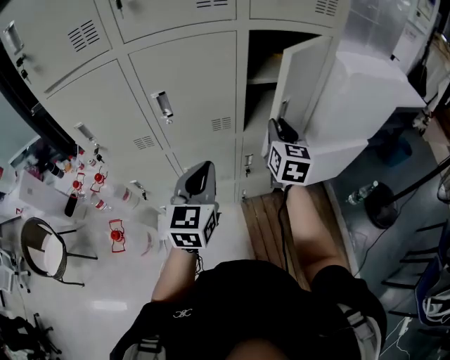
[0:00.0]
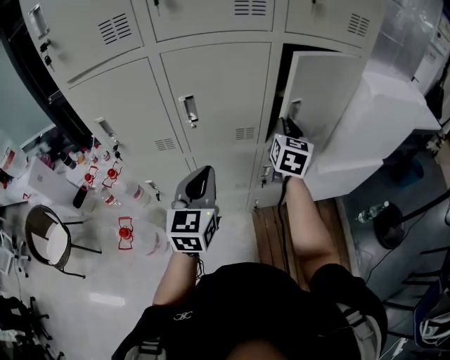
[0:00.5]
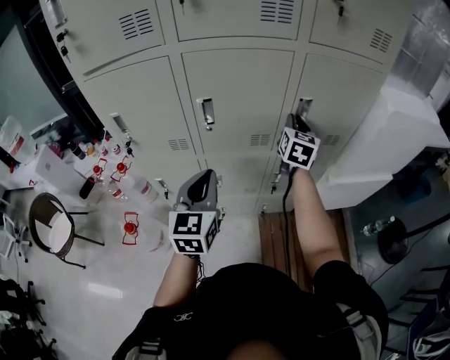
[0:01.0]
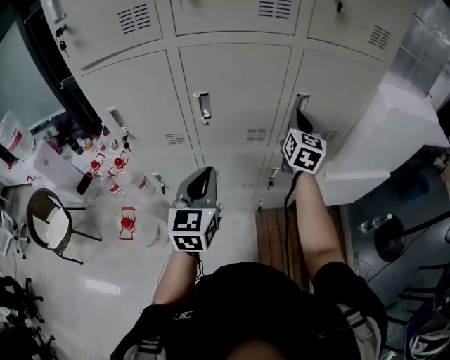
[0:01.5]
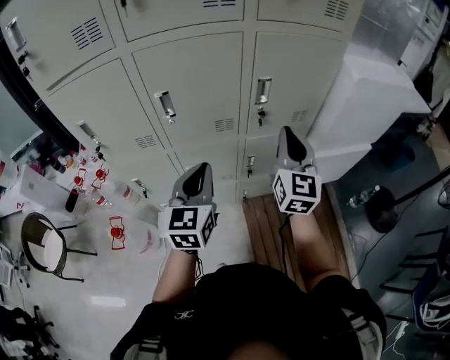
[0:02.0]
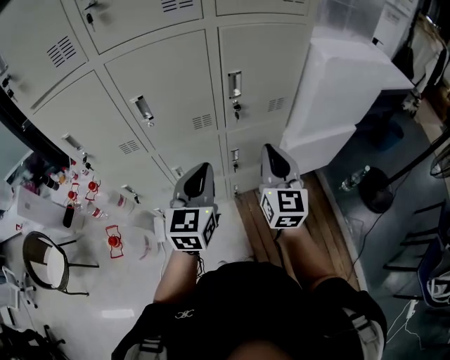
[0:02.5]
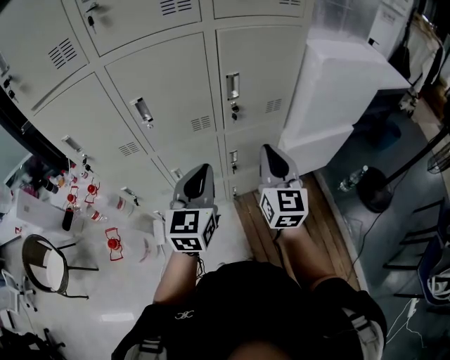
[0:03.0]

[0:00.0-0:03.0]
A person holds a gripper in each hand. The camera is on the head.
0:00.0 to 0:01.5: The right gripper heads forward and to the left, covering about 10 cm, and closes up. The left gripper goes approximately 10 cm to the left.
0:01.5 to 0:03.0: The right gripper heads backward, covering roughly 20 cm; the left gripper heads to the right, covering roughly 15 cm.

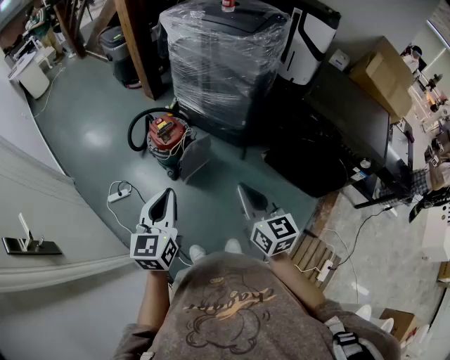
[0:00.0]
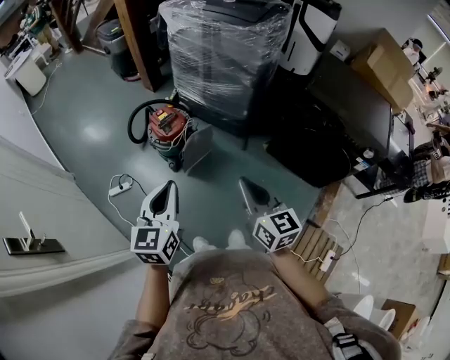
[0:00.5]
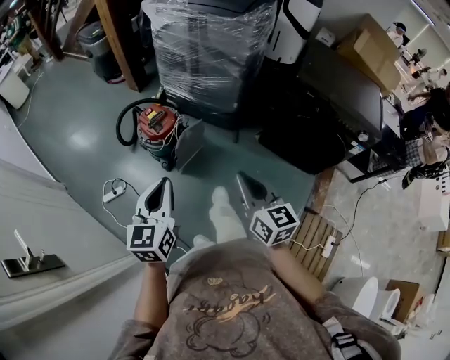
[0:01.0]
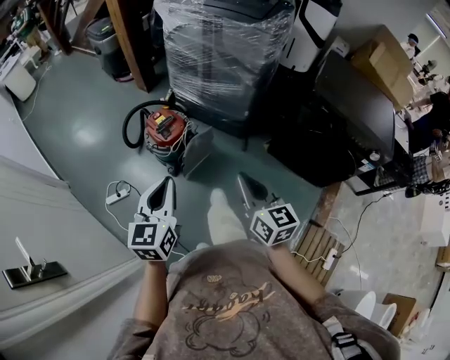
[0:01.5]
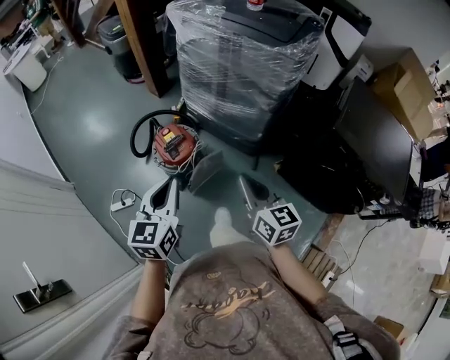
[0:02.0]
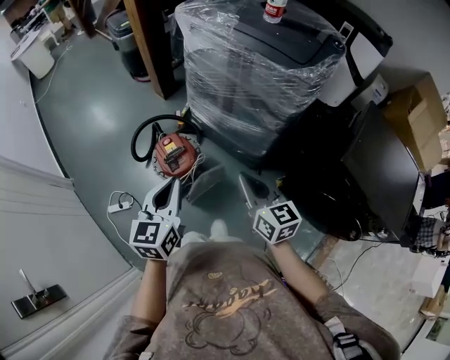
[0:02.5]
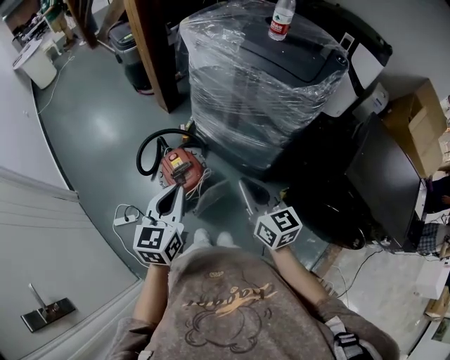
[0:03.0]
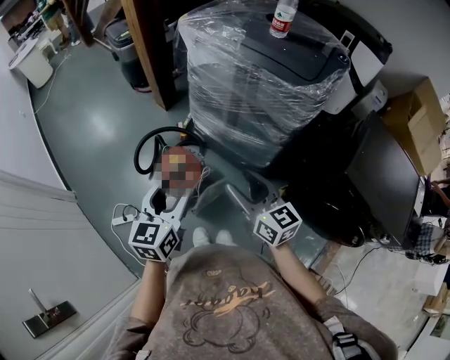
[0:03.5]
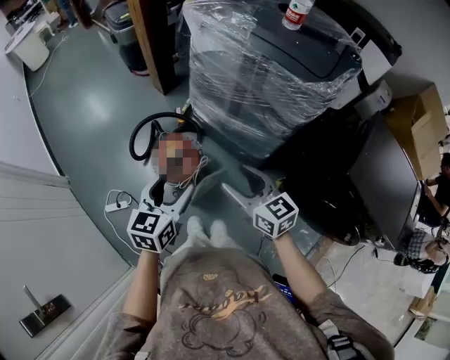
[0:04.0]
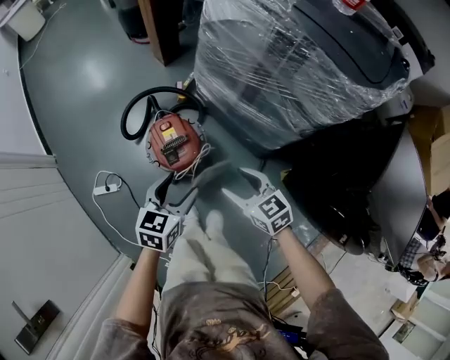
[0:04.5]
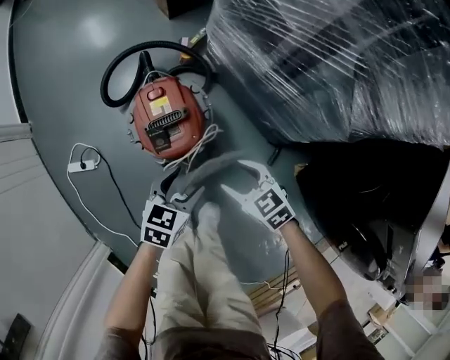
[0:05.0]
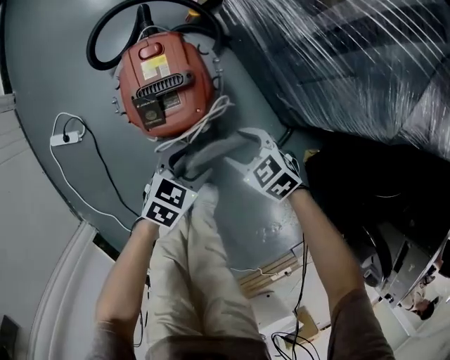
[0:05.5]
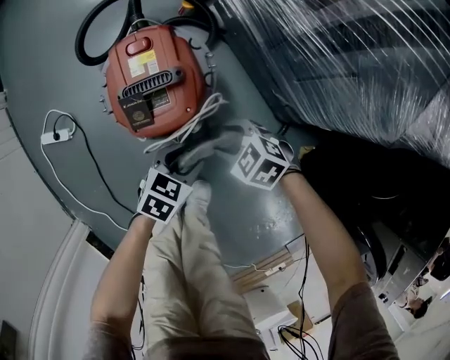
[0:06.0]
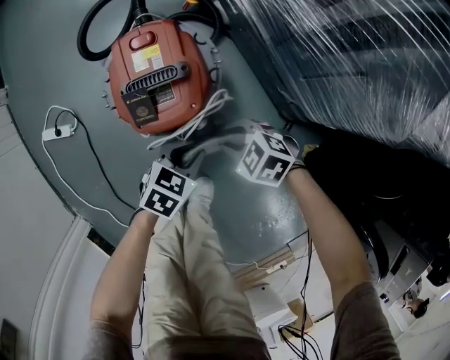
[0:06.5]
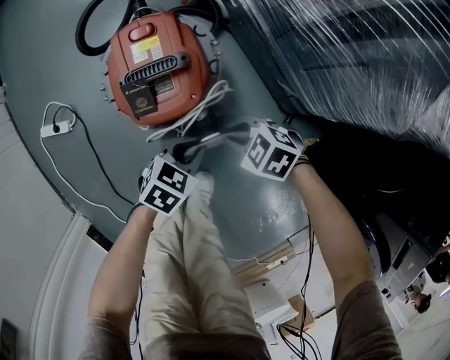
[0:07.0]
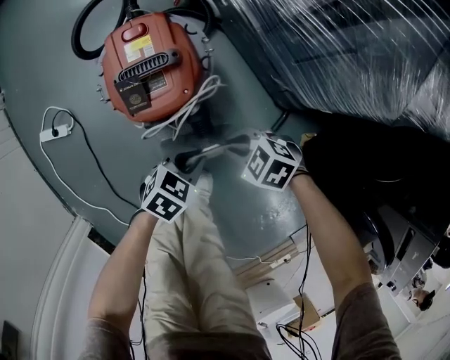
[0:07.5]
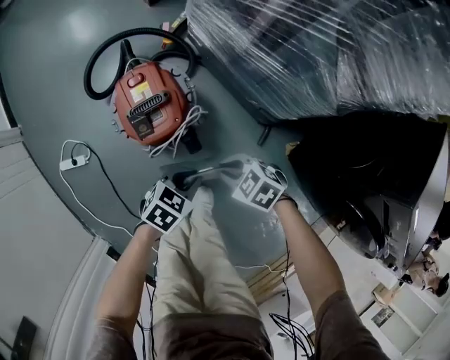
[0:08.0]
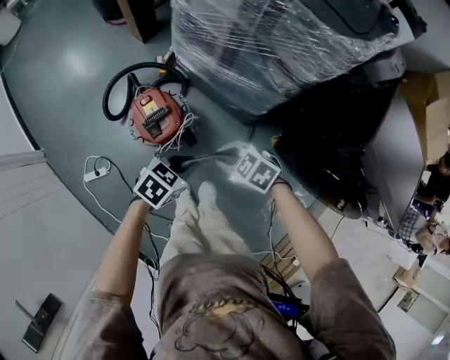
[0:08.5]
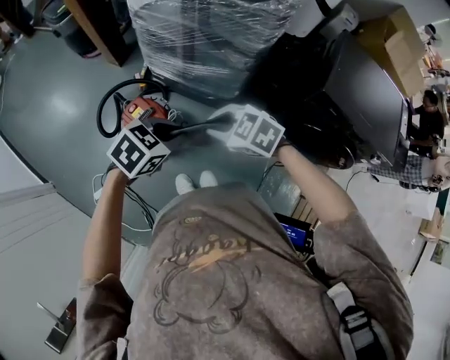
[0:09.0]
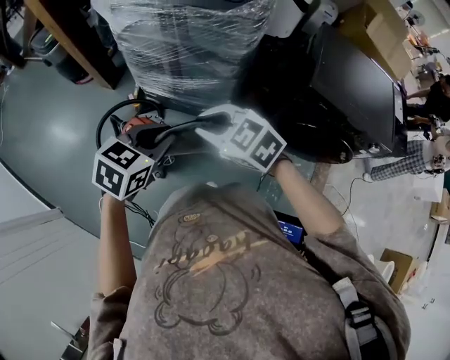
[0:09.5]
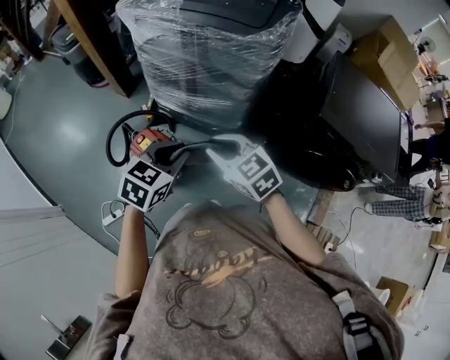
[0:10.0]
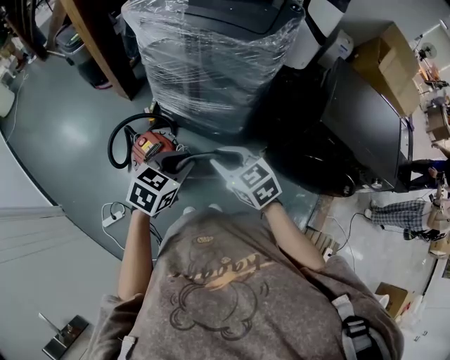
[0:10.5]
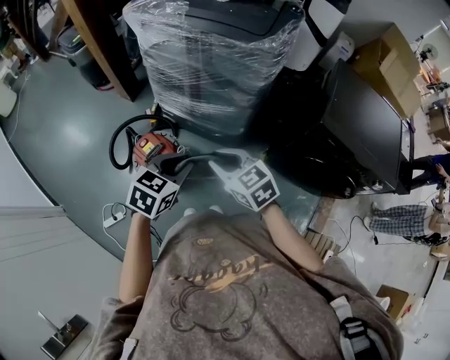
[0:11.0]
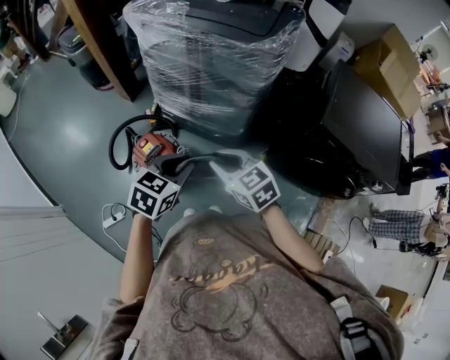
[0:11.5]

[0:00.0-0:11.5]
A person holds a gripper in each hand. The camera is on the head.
0:00.0 to 0:02.0: Both grippers move forward, about 25 cm.
0:02.0 to 0:04.0: Both grippers travel together forward, some 15 cm. The right gripper changes its angle by approximately 20 degrees, and opens up. The left gripper opens its fingers.
0:04.0 to 0:06.0: The two grippers go approximately 60 cm downward. The left gripper turns by approximately 30 degrees. Meanwhile the right gripper angles its fingers downward, by about 40 degrees.
0:06.0 to 0:07.5: The right gripper changes place by roughly 5 cm, and closes. The left gripper closes up.
0:07.5 to 0:09.5: Both grippers move upward, roughly 60 cm. The left gripper turns by approximately 30 degrees. The right gripper changes its angle by roughly 50 degrees.
0:09.5 to 0:11.5: The right gripper goes roughly 5 cm downward.

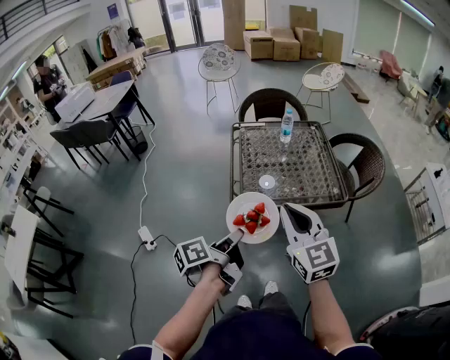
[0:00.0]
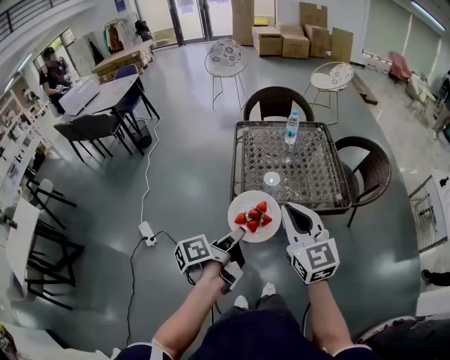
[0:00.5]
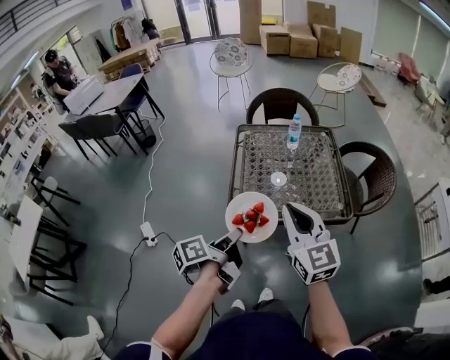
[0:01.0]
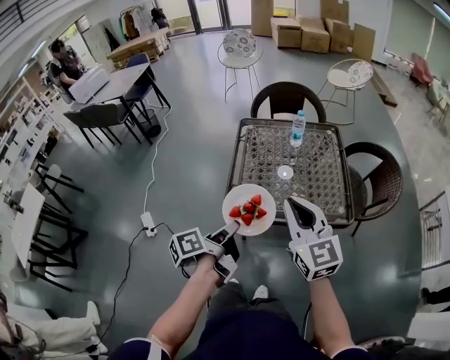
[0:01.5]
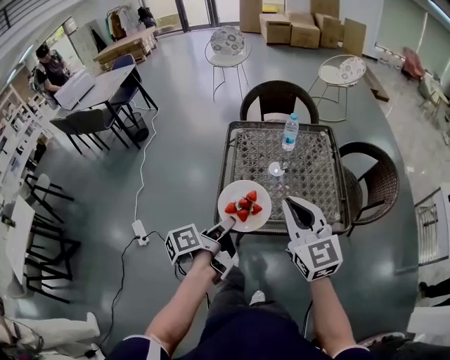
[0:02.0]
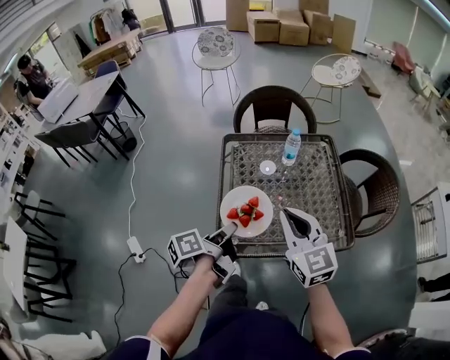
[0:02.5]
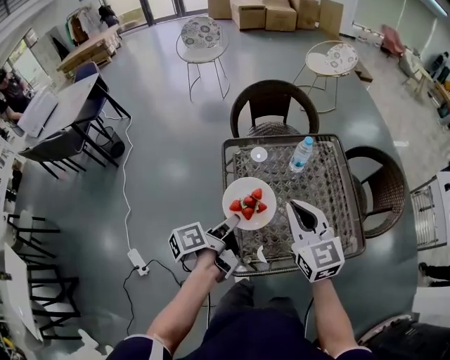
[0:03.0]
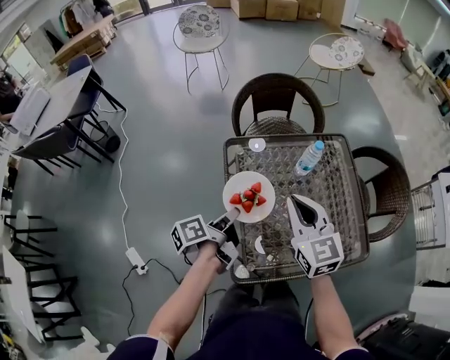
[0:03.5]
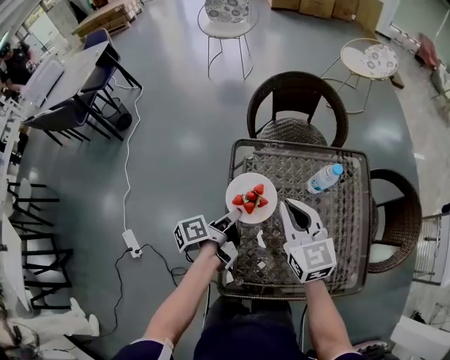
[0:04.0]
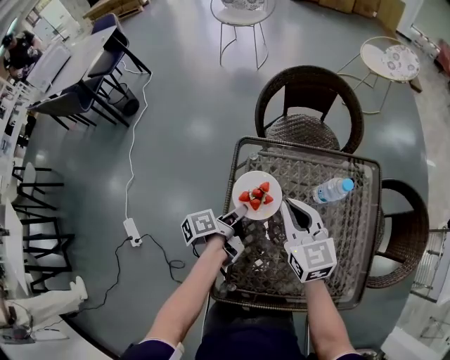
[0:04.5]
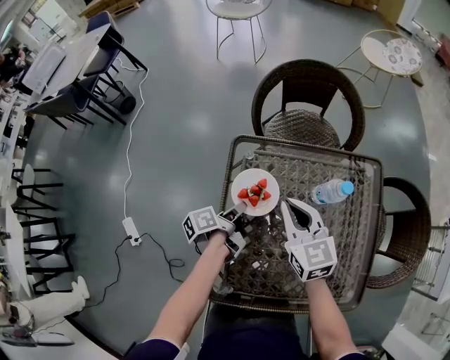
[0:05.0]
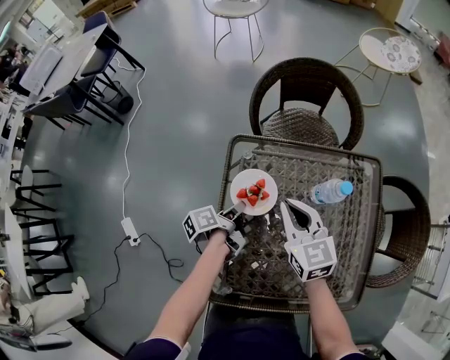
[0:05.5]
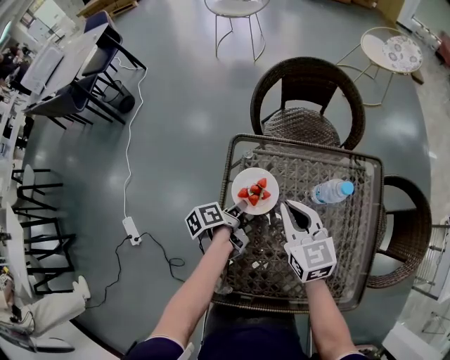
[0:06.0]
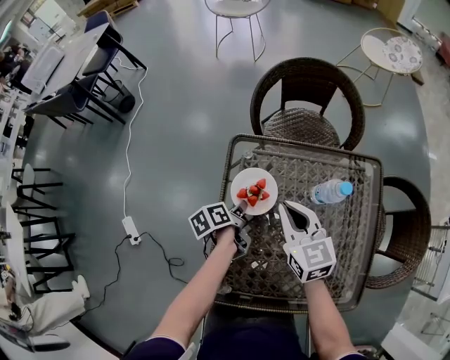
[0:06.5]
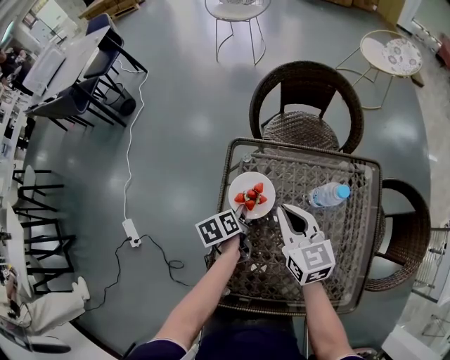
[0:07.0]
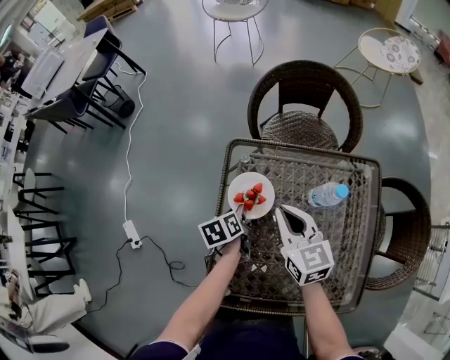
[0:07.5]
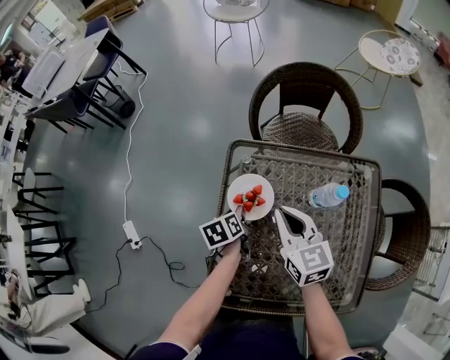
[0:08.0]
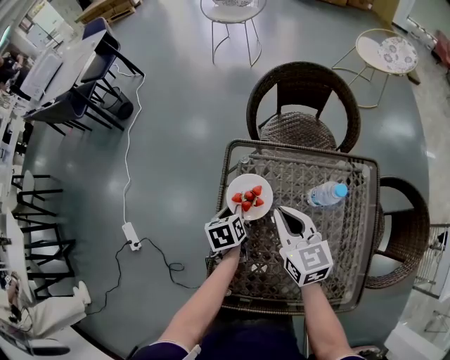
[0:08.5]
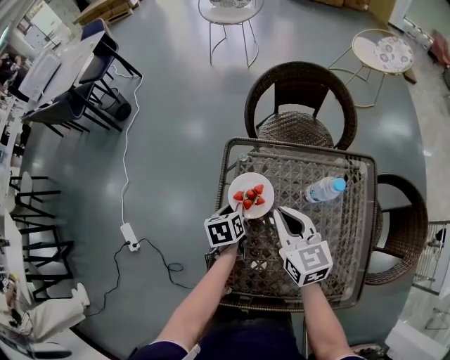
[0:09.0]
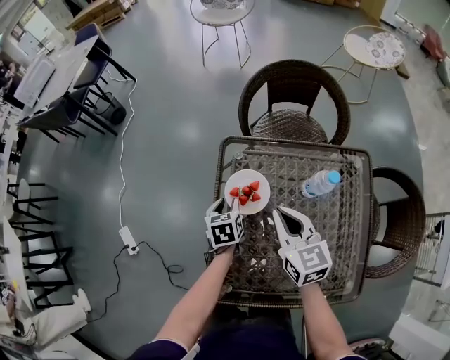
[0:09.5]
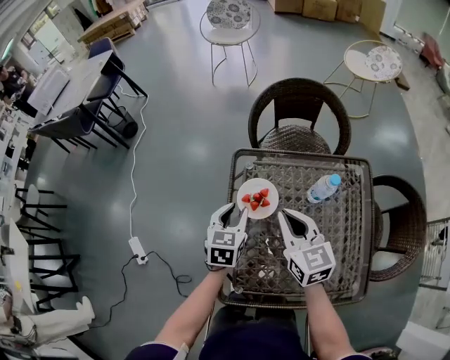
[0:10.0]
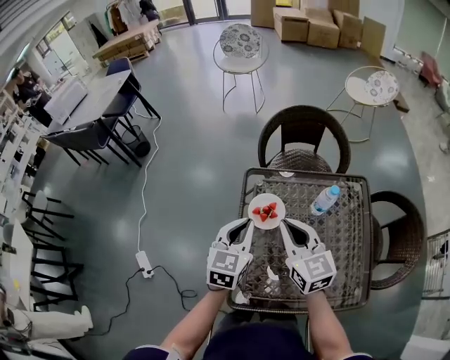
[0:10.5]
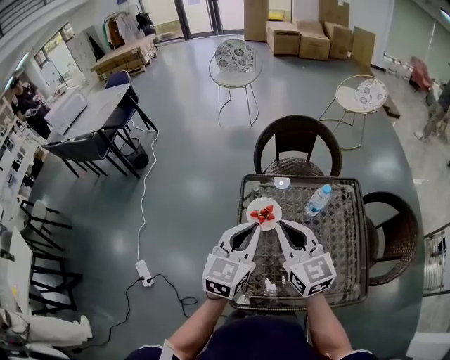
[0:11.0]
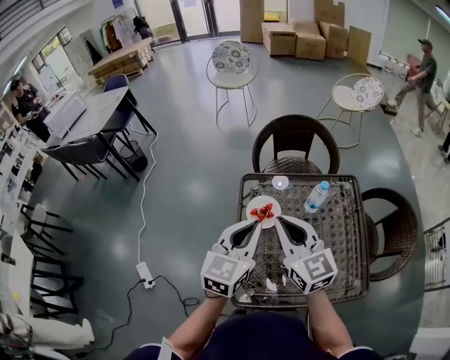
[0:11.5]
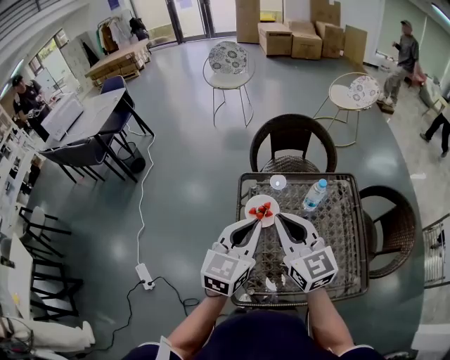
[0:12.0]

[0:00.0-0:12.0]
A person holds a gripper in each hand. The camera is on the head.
0:00.0 to 0:02.0: Both grippers move forward, some 15 cm.
0:02.0 to 0:04.0: Both grippers move forward and downward, approximately 35 cm.
0:04.0 to 0:06.0: The two grippers go about 10 cm downward and forward.
0:06.0 to 0:08.0: The left gripper turns by about 30 degrees, and opens its fingers.
0:08.0 to 0:10.0: The left gripper heads upward, covering roughly 15 cm, and rotates around the line of its fingers by about 40 degrees, clockwise from behind; the right gripper goes about 5 cm upward.
0:10.0 to 0:12.0: Both grippers move upward and backward, about 20 cm. The left gripper rotates approximately 30 degrees, and closes.
